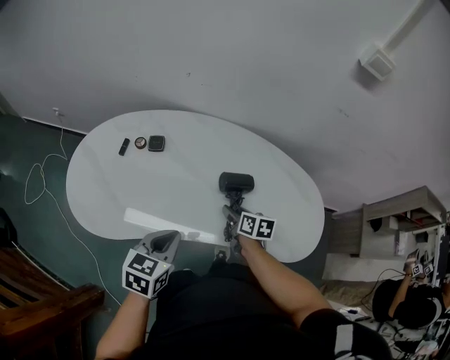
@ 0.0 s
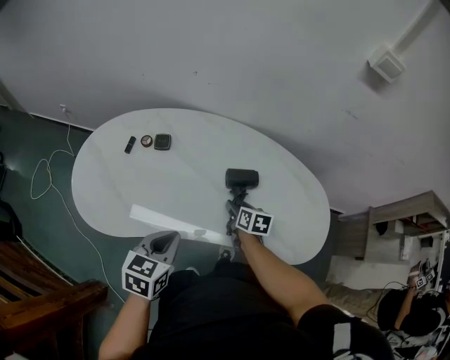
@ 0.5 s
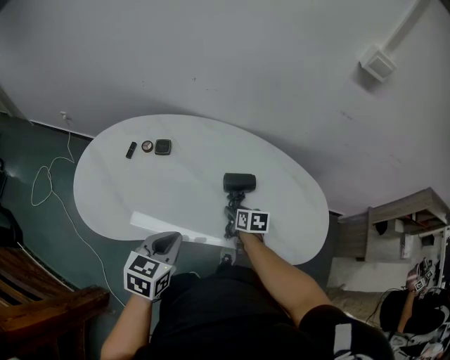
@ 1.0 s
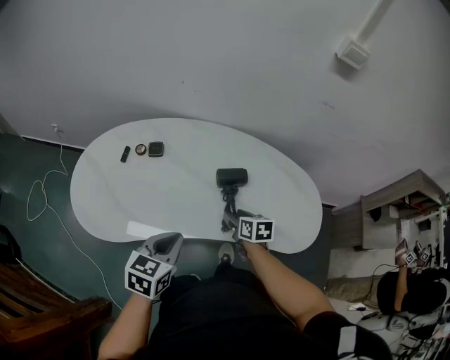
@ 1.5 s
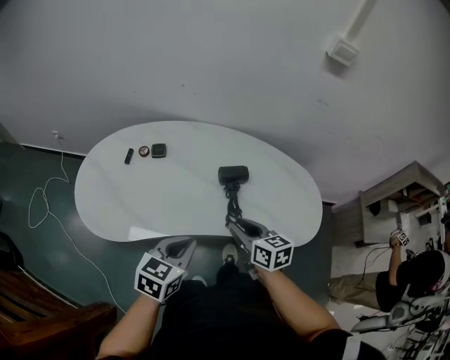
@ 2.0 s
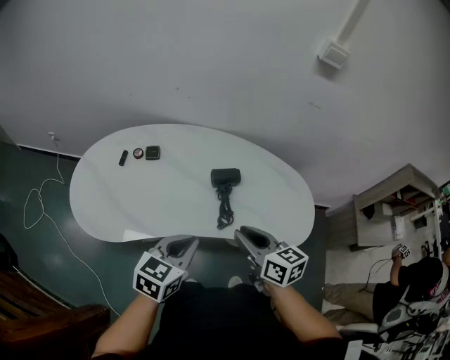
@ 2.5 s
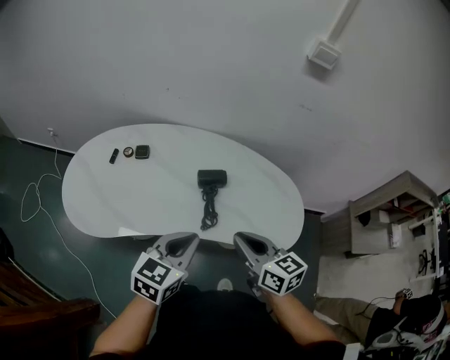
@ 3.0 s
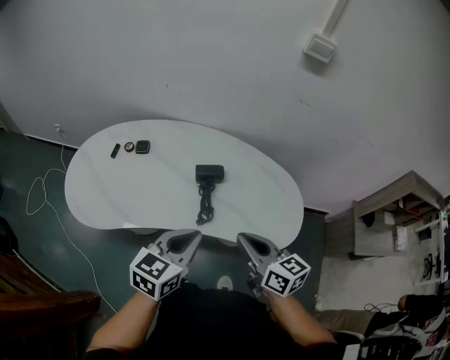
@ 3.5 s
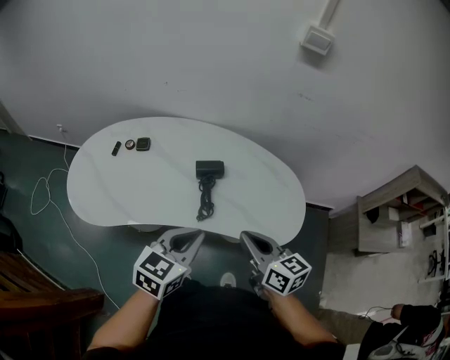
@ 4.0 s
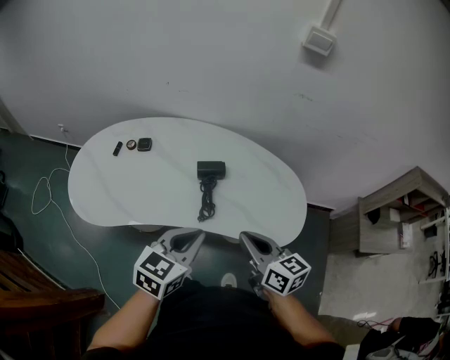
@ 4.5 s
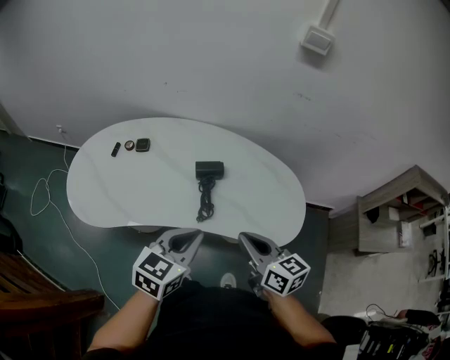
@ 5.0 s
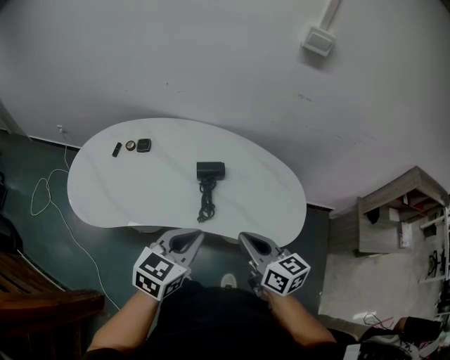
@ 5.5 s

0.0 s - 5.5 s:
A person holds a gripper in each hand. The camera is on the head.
0.0 s - 2.0 s: The left gripper moves backward, some 5 cm. The right gripper is displaced upward and backward by some 20 cm, and rotates some 20 degrees.
2.0 s - 3.5 s: The right gripper goes some 15 cm to the right, upward and backward, and closes. Meanwhile the left gripper is displaced to the right and upward by roughly 15 cm.
3.5 s - 5.5 s: The grippers move only a little.

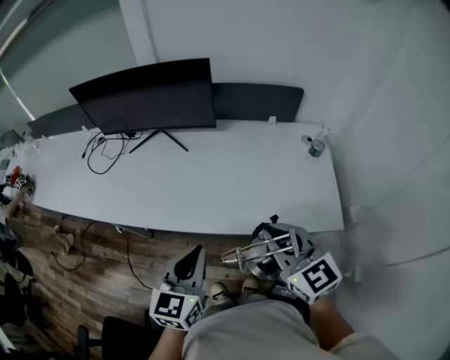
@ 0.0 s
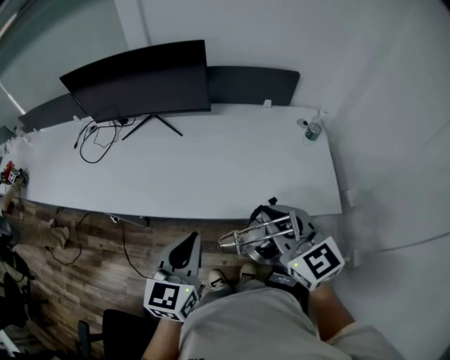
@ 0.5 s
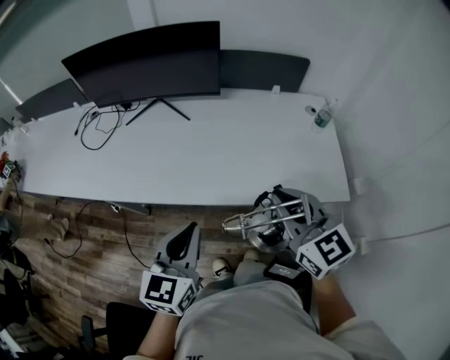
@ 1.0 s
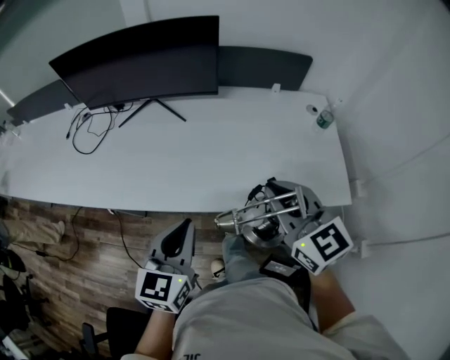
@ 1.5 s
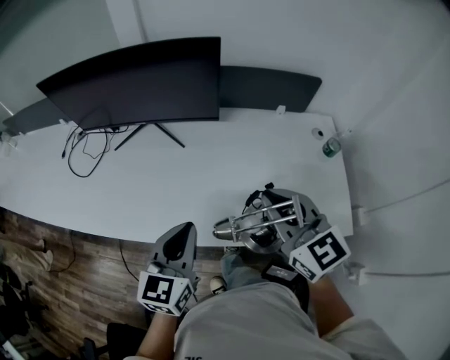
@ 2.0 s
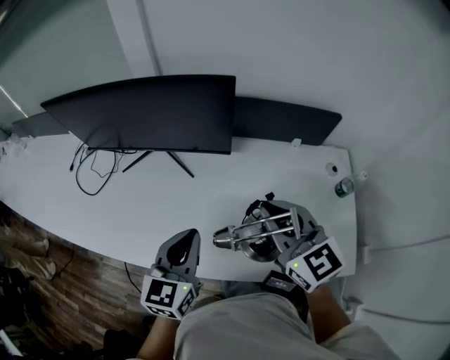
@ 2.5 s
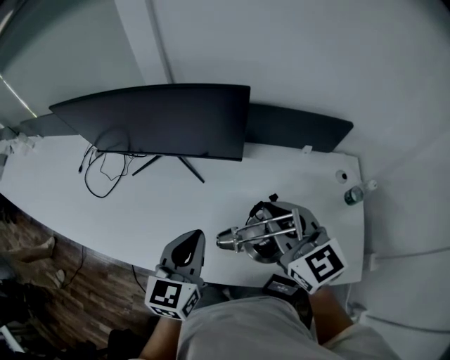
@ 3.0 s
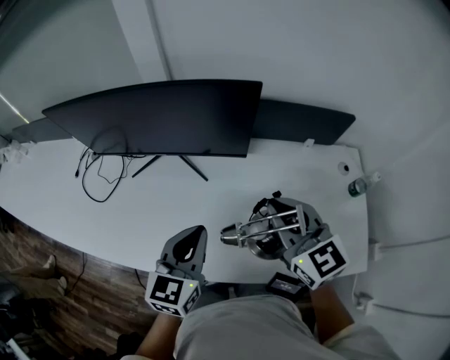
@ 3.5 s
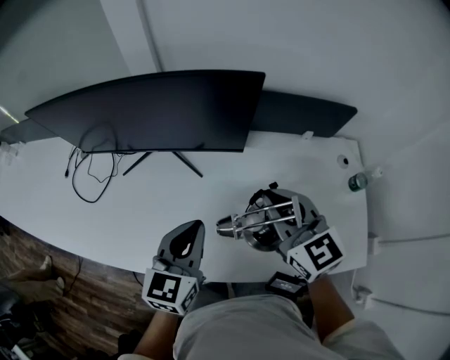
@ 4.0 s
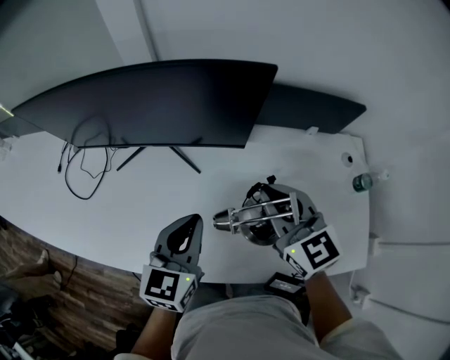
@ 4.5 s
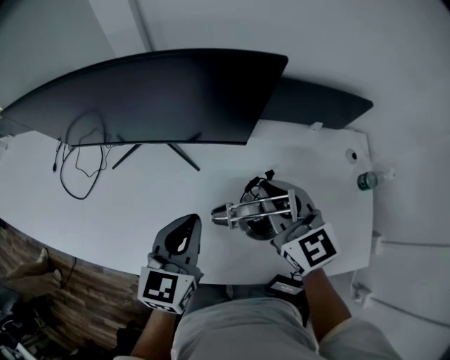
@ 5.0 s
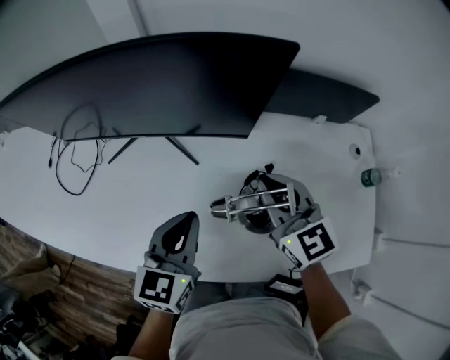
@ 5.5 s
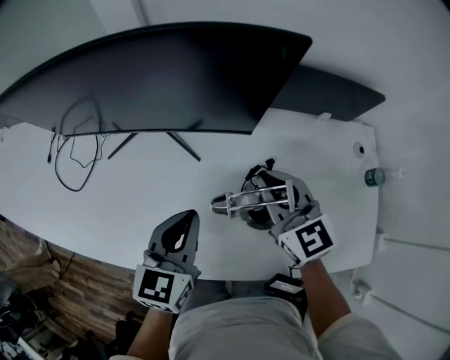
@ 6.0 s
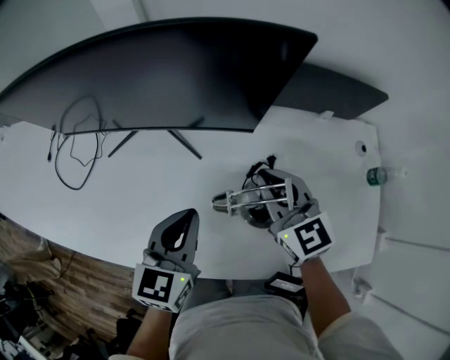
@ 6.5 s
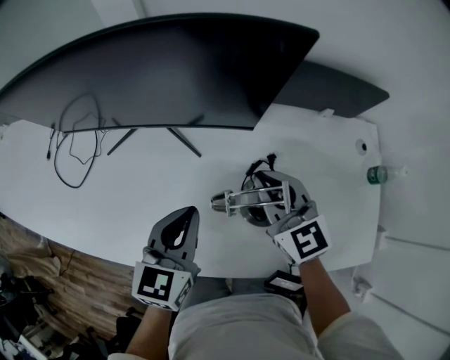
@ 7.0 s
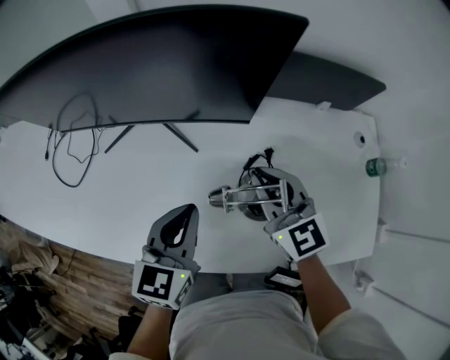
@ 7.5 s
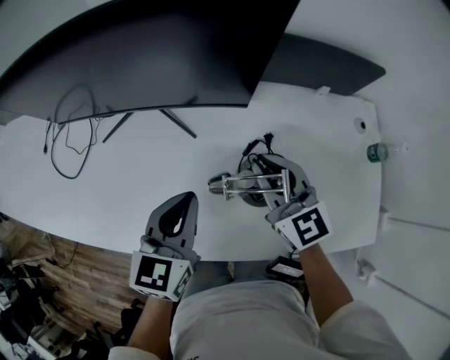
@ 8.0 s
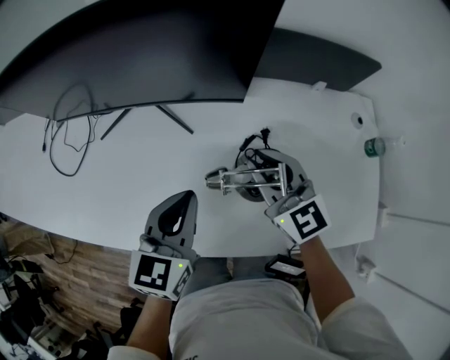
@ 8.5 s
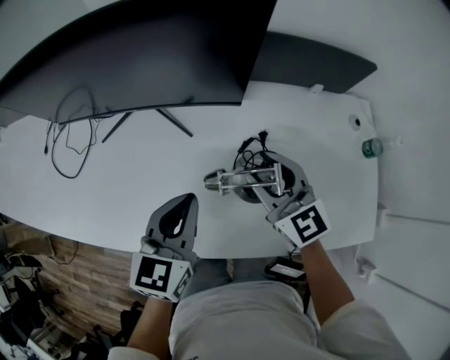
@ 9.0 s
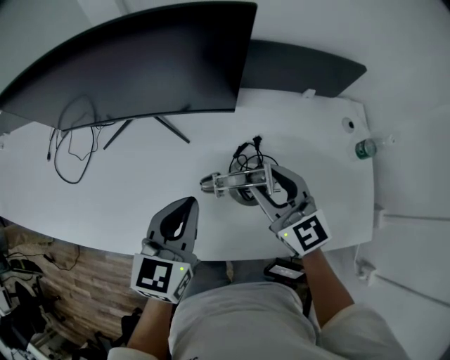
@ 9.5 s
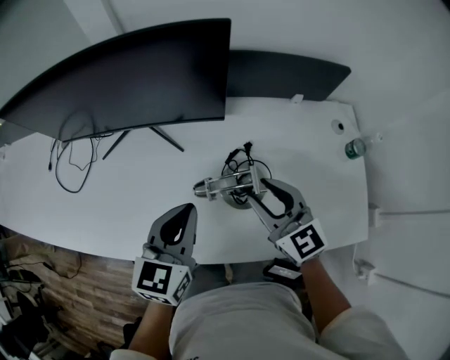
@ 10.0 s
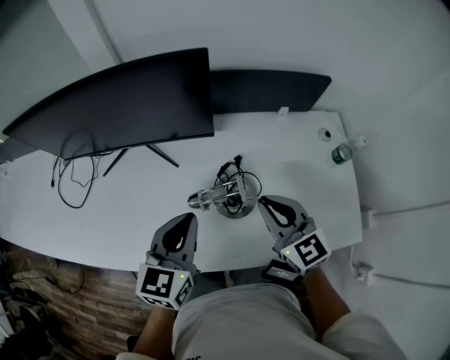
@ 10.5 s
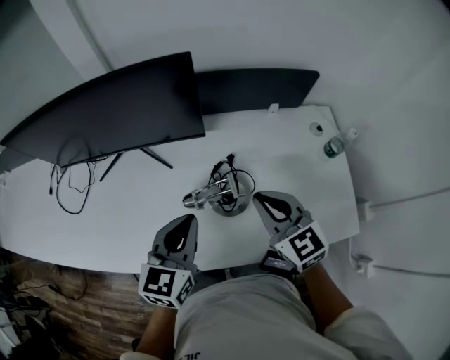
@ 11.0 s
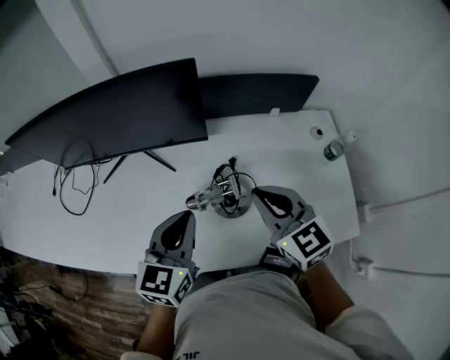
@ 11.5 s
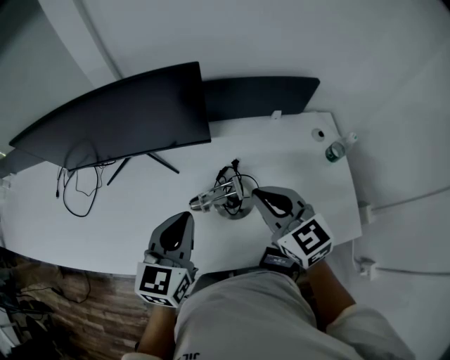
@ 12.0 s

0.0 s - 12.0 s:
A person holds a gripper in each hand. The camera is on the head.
0.0 s - 2.0 s: Both grippers travel together forward, about 15 cm.
2.0 s - 4.0 s: Both grippers travel together forward, roughly 15 cm.
4.0 s - 6.0 s: The left gripper is displaced downward by about 5 cm. Meanwhile the right gripper is displaced downward and forward by some 10 cm.
6.0 s - 8.0 s: The grippers make only small movements.
8.0 s - 10.0 s: The left gripper ends up about 5 cm from where it was, while the right gripper heads backward, covering roughly 5 cm, and opens its fingers.
10.0 s - 12.0 s: The right gripper shifts approximately 5 cm upward, and closes.

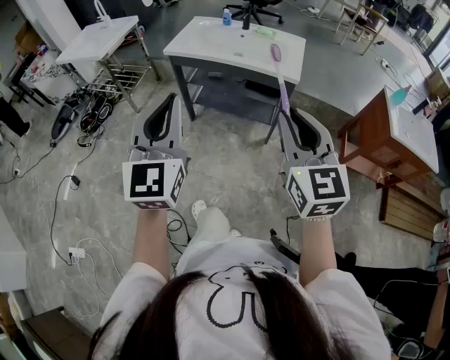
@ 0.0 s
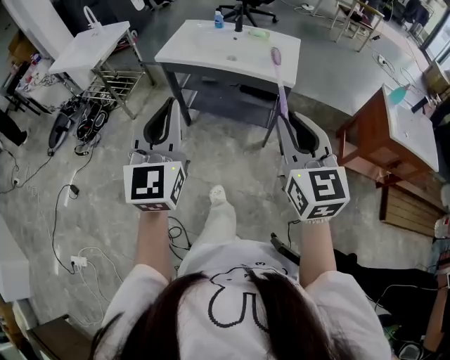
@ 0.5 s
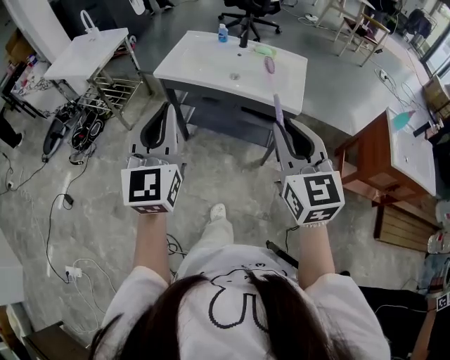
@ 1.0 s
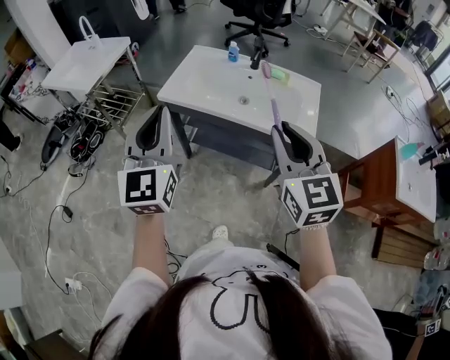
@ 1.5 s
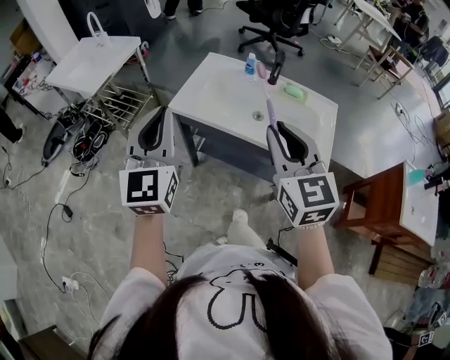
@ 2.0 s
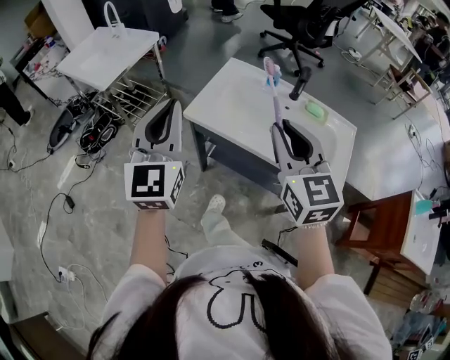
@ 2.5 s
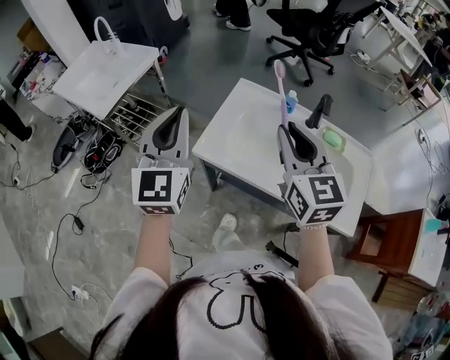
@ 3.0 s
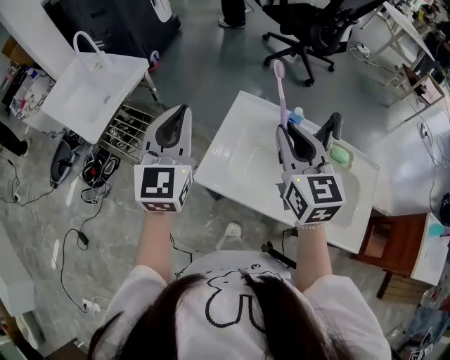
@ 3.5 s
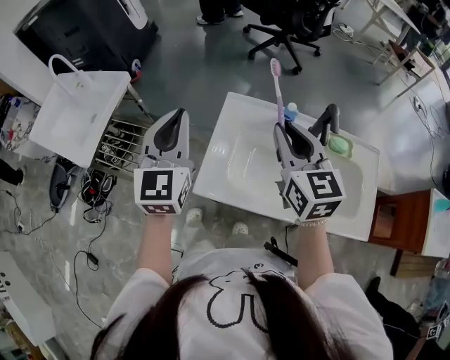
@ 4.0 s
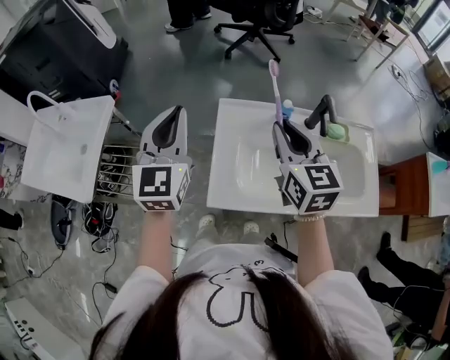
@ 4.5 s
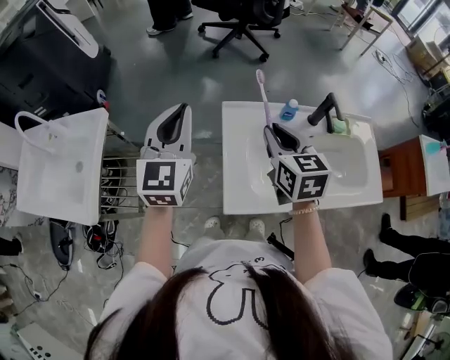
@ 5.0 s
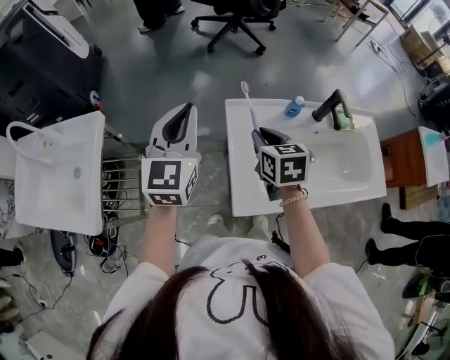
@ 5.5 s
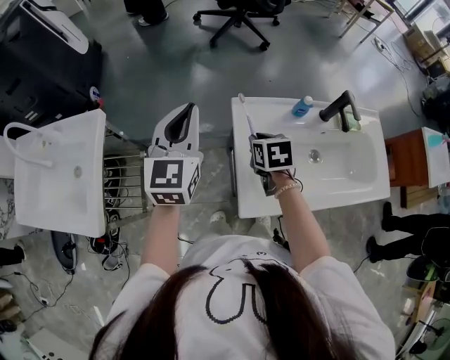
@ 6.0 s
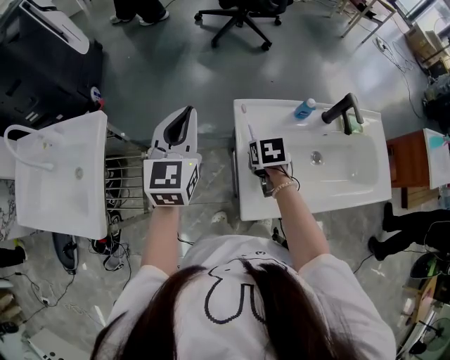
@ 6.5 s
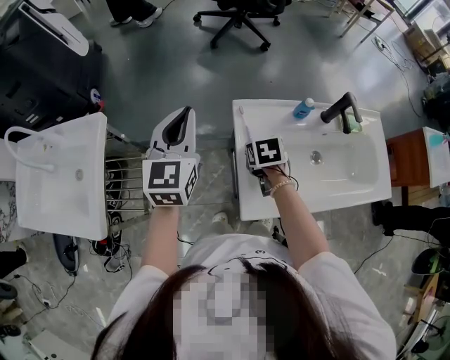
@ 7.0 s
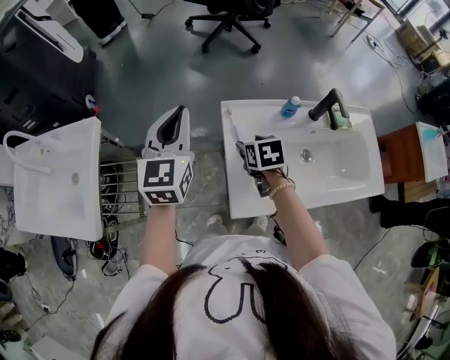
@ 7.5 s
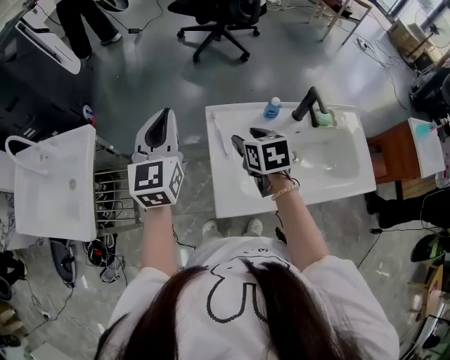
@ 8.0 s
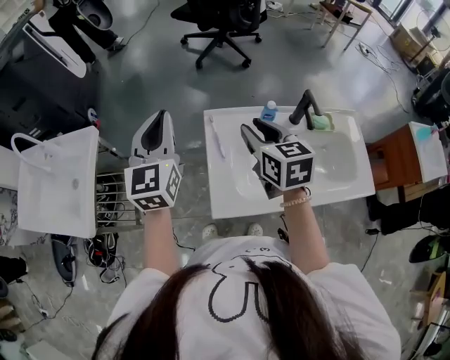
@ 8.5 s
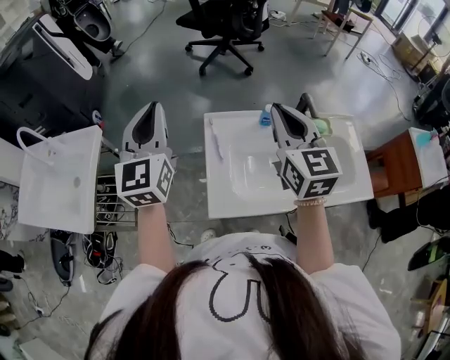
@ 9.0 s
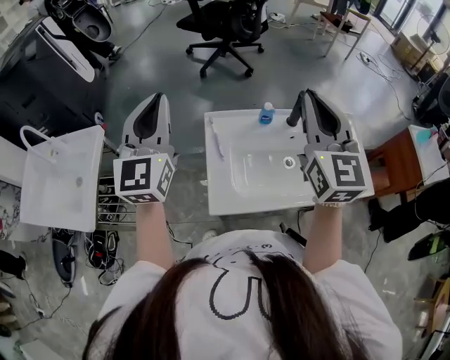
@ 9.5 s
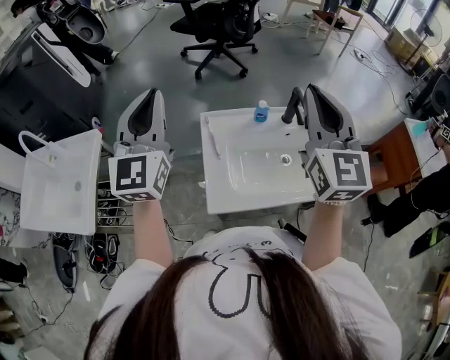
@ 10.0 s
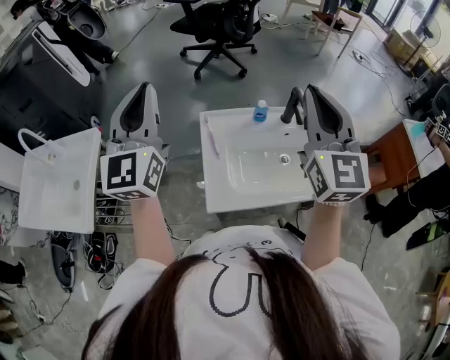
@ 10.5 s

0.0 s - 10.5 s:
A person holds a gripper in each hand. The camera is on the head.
0.0 s - 2.0 s: The pair of grippers is taken forward, about 40 cm.
2.0 s - 4.0 s: The pair of grippers is taken forward, about 40 cm.
4.0 s - 6.5 s: The right gripper is displaced downward and to the left by roughly 30 cm, and points its fingers roughly 50 degrees further downward; the left gripper is displaced forward, to the left and downward by some 20 cm, and changes its angle by approximately 20 degrees.
6.5 s - 8.5 s: The left gripper goes about 10 cm upward, backward and to the right. The right gripper heads upward, covering roughly 20 cm, angles its fingers upward, by roughly 40 degrees, and opens, then closes again.
8.5 s - 10.5 s: The left gripper goes approximately 15 cm upward and backward. The right gripper shifts about 25 cm upward, to the right and backward, tips its fingers upward by some 30 degrees, and closes its fingers.
